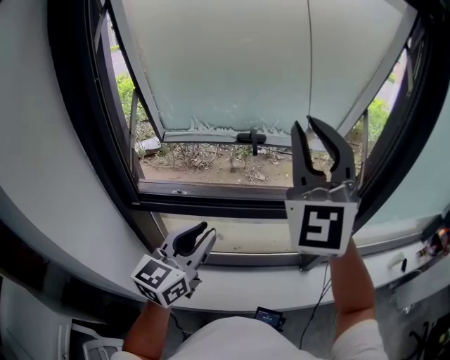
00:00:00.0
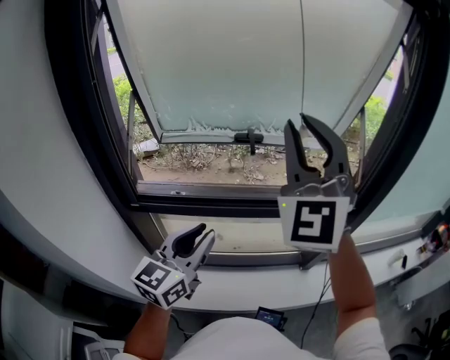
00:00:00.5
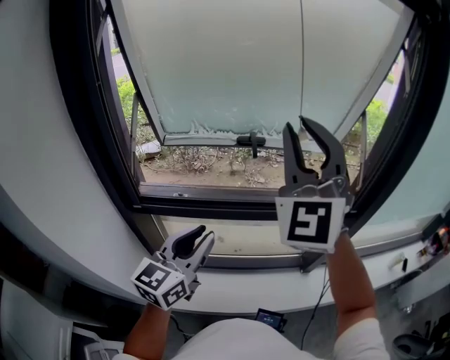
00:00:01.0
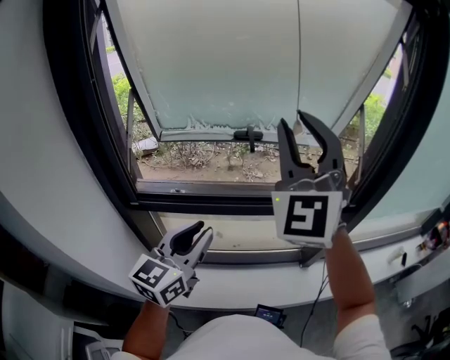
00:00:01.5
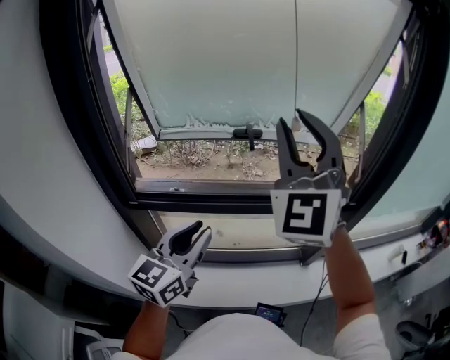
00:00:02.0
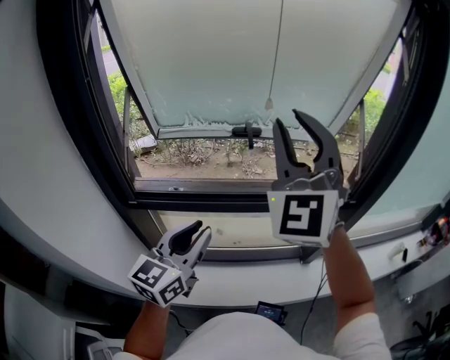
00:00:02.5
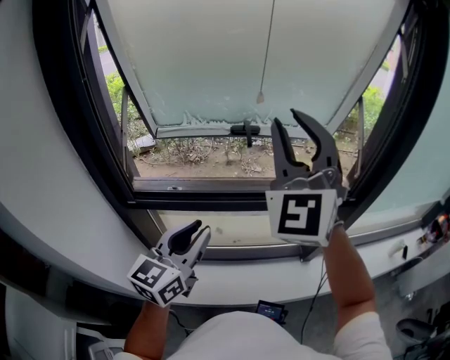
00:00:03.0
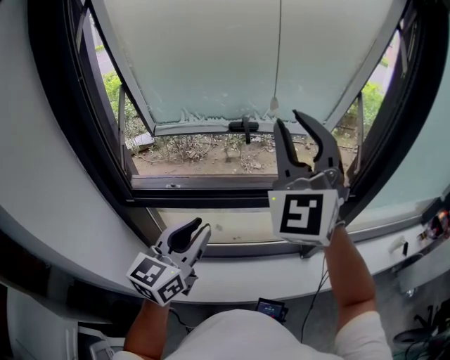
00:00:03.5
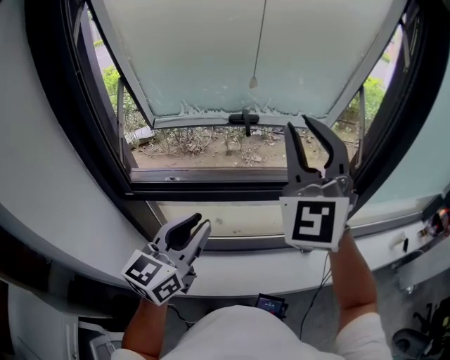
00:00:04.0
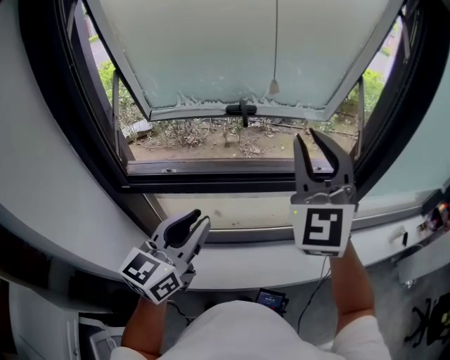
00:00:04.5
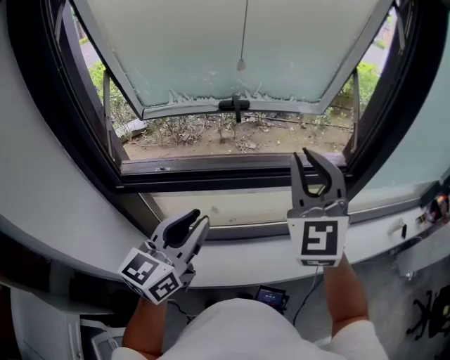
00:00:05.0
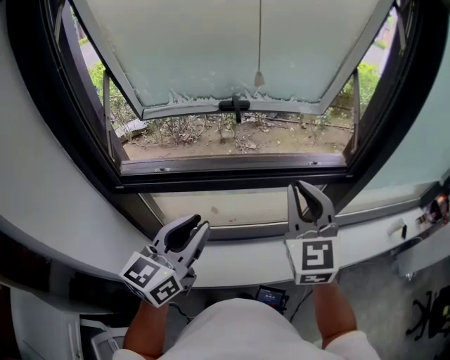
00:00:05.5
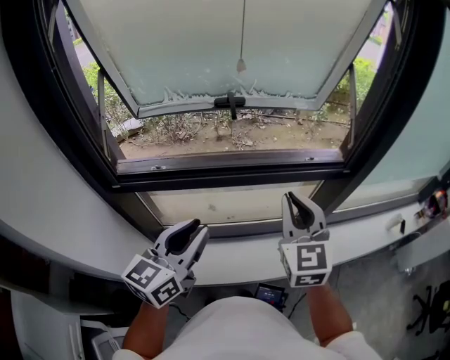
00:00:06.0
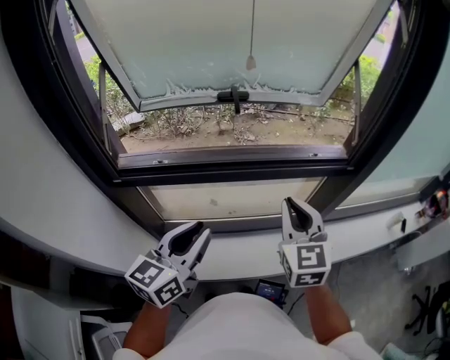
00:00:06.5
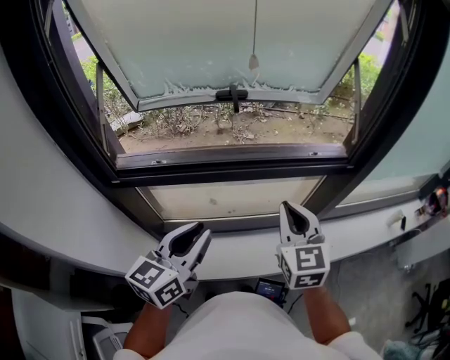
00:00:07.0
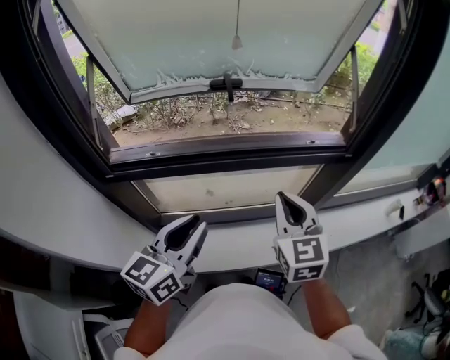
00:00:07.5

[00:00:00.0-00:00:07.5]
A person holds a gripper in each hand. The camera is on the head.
00:00:00.0 to 00:00:04.0: The grippers stay close to where they were, moving slightly.
00:00:04.0 to 00:00:05.5: The right gripper moves downward, some 15 cm, and changes its angle by roughly 30 degrees.
00:00:05.5 to 00:00:07.5: The right gripper shifts approximately 10 cm downward.

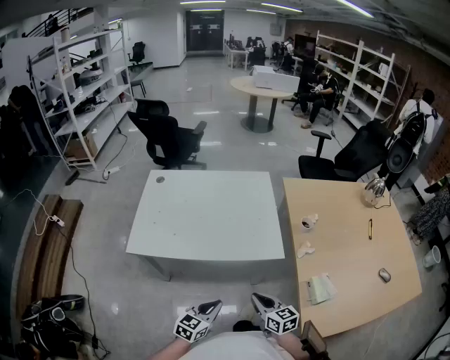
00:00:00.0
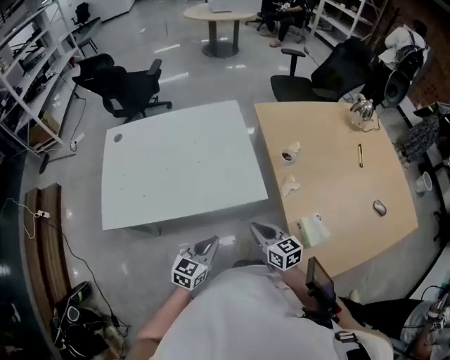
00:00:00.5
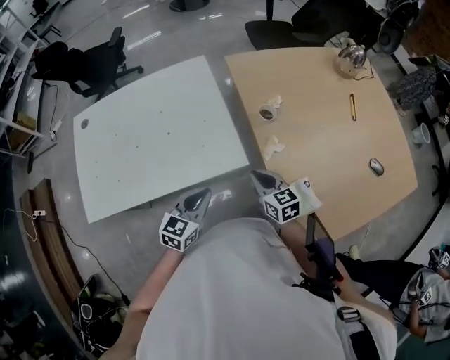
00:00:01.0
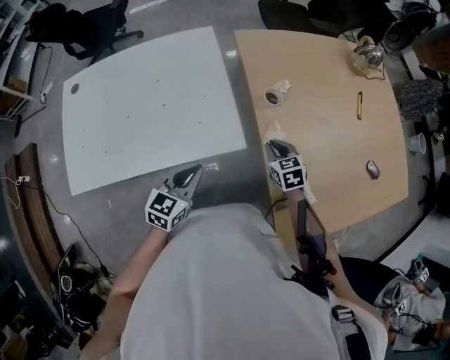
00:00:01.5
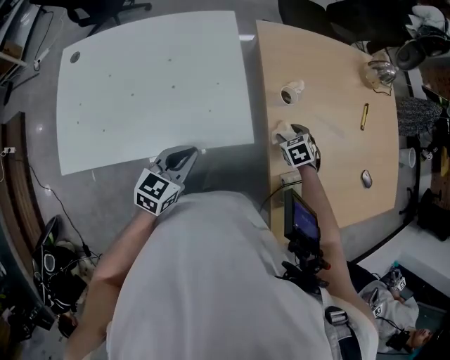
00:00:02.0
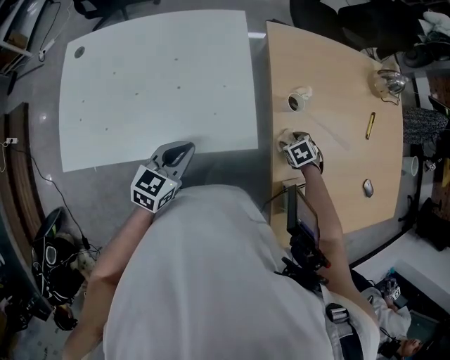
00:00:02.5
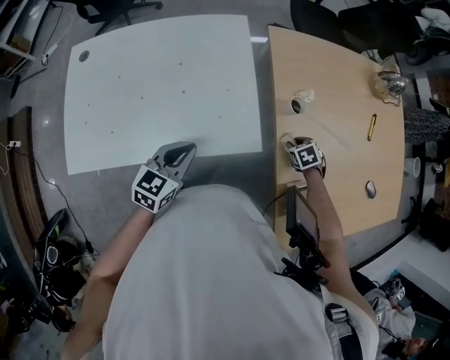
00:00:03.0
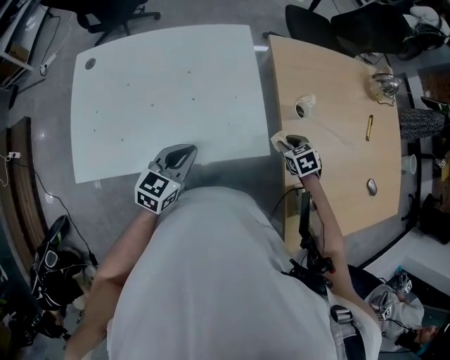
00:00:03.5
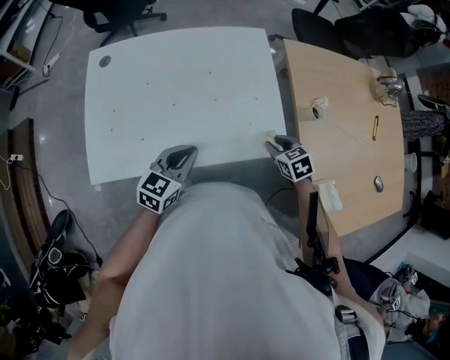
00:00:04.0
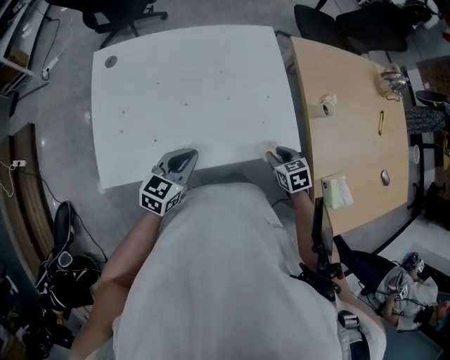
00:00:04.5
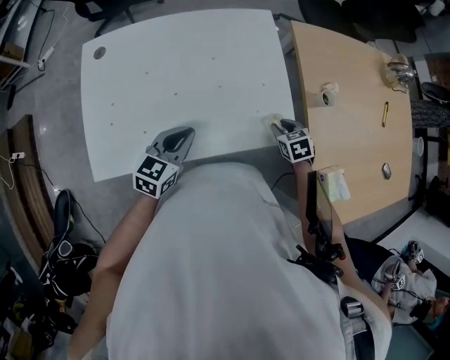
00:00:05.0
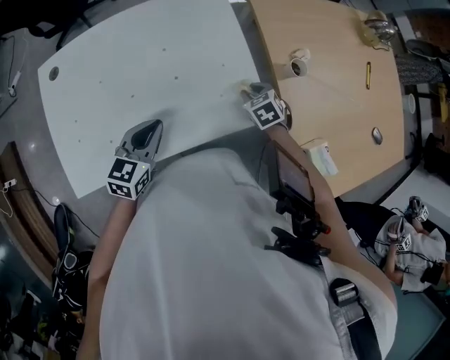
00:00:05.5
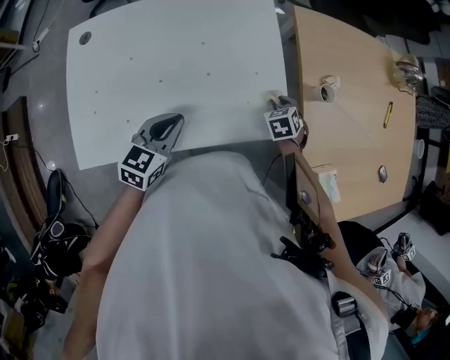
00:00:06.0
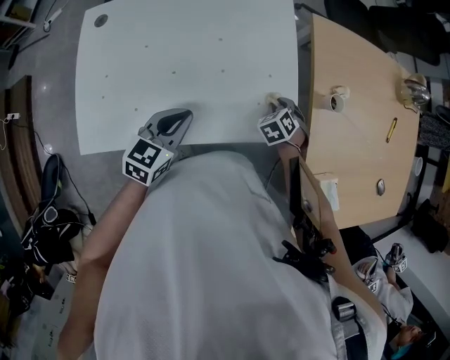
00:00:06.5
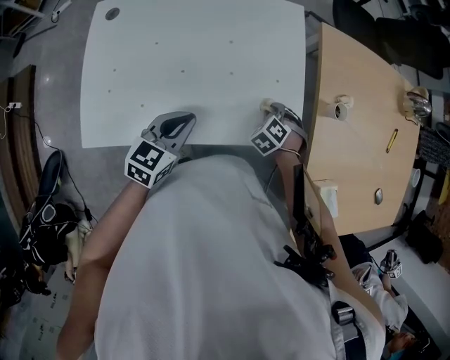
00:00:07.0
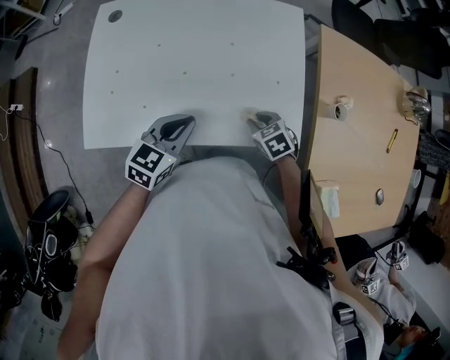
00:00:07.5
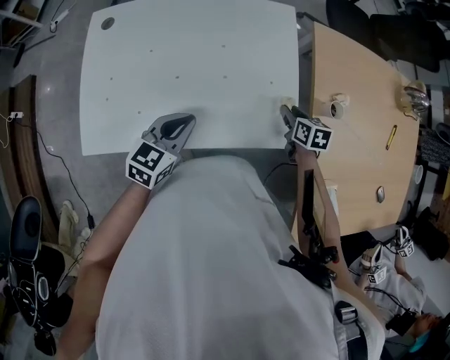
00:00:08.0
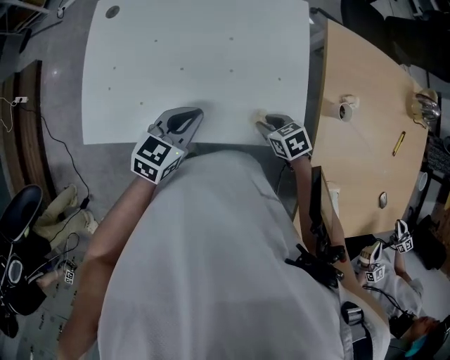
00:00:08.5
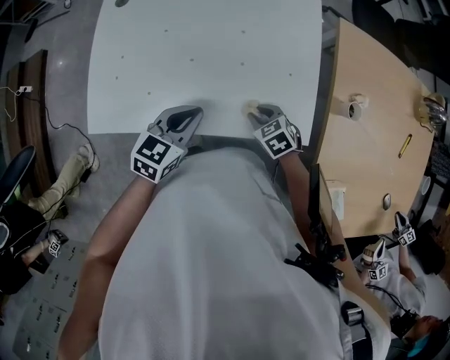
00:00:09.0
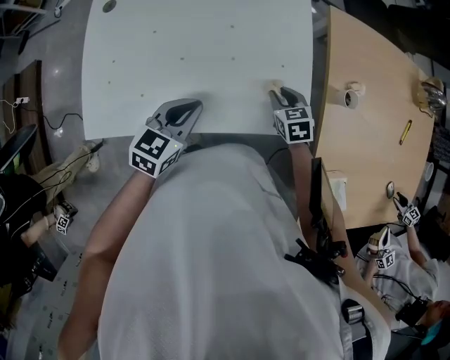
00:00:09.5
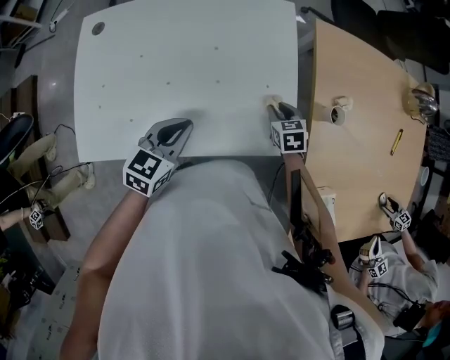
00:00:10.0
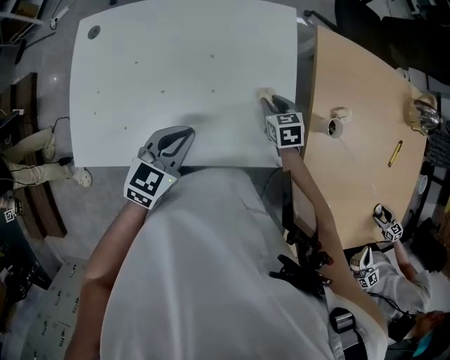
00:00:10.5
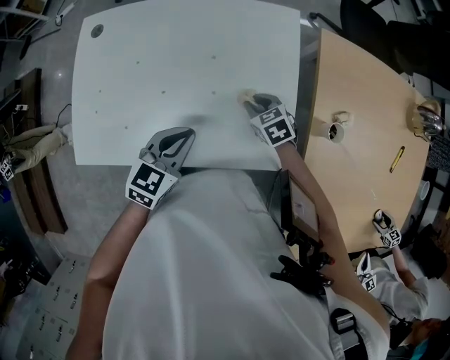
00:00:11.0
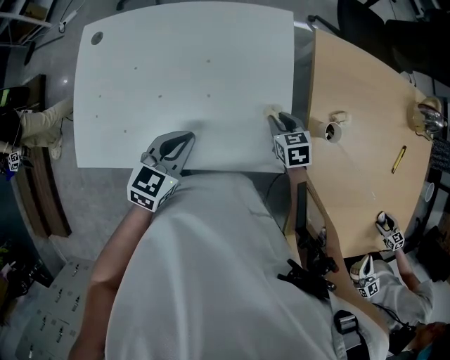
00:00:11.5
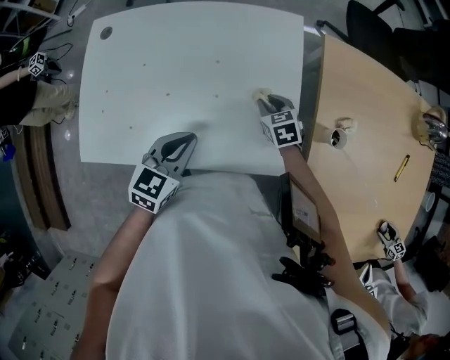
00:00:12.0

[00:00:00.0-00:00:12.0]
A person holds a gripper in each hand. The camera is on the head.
00:00:00.0 to 00:00:02.0: The left gripper is displaced forward by approximately 25 cm; the right gripper goes about 40 cm forward and to the right, tips its fingers downward by about 40 degrees, and opens its fingers.
00:00:02.0 to 00:00:04.0: The left gripper moves some 15 cm; the right gripper changes place by approximately 20 cm, and closes up.
00:00:04.0 to 00:00:06.0: The left gripper ends up roughly 5 cm from where it was. Meanwhile the right gripper moves forward and downward, approximately 10 cm, and turns by about 20 degrees.
00:00:06.0 to 00:00:08.0: The right gripper changes its angle by approximately 40 degrees.
00:00:08.0 to 00:00:10.0: The right gripper moves about 15 cm to the left and comes back, and swivels approximately 20 degrees.
00:00:10.0 to 00:00:12.0: The right gripper swings left and right, about 10 cm each way, with 2 reversals.

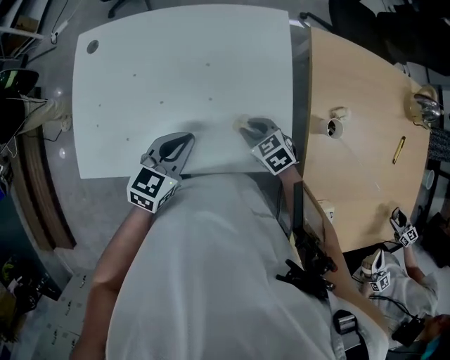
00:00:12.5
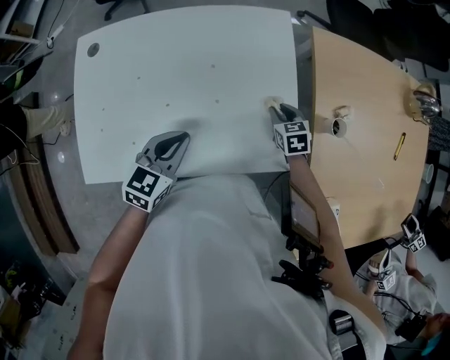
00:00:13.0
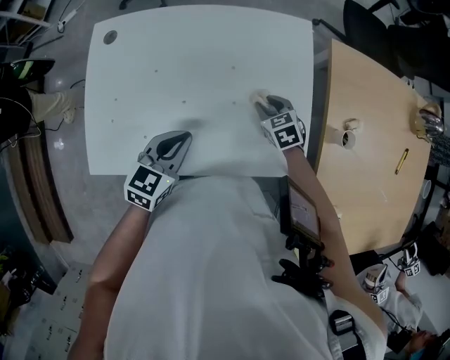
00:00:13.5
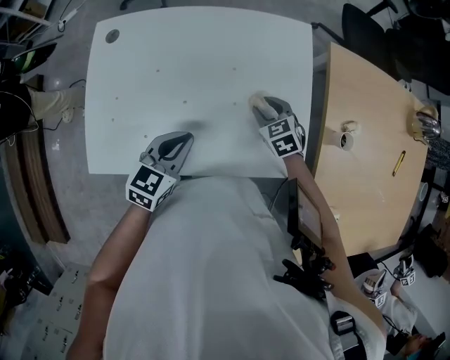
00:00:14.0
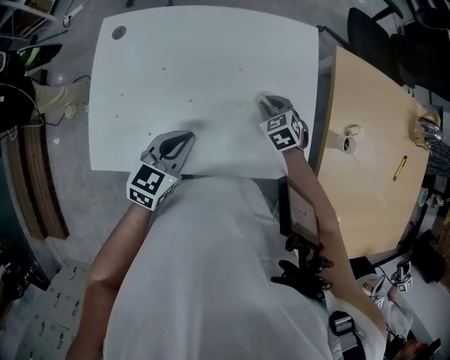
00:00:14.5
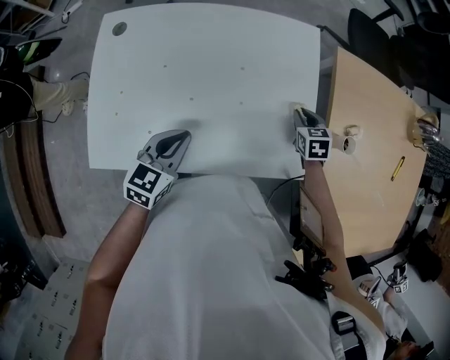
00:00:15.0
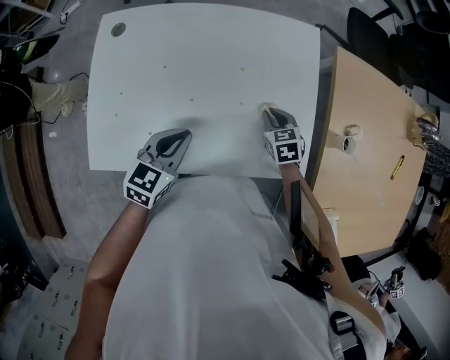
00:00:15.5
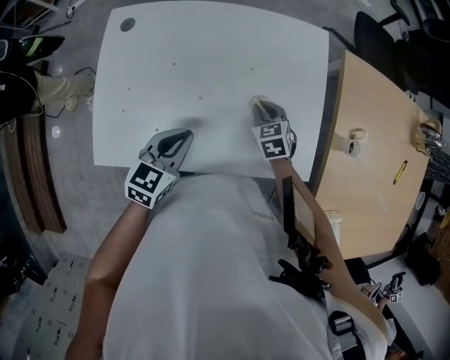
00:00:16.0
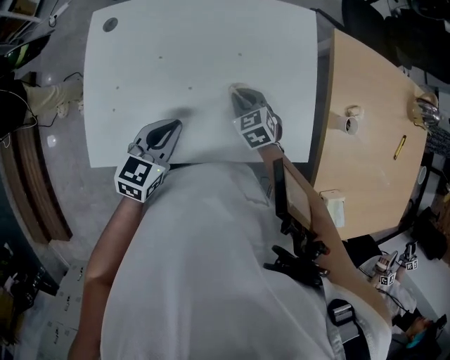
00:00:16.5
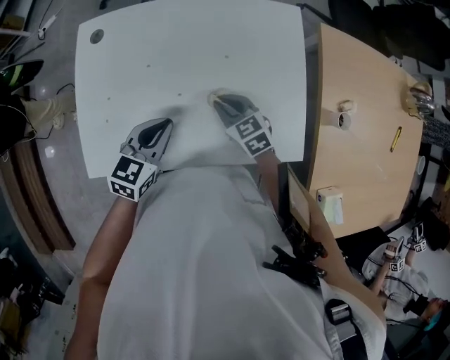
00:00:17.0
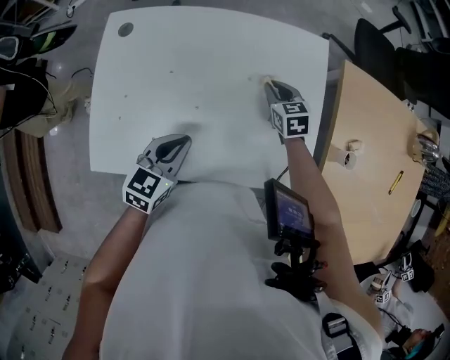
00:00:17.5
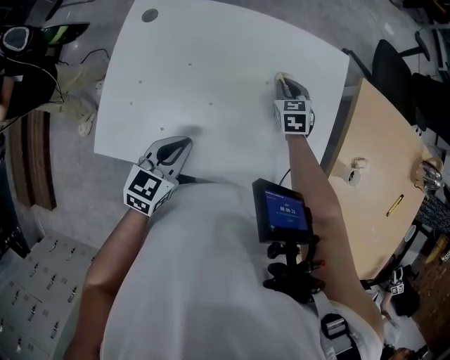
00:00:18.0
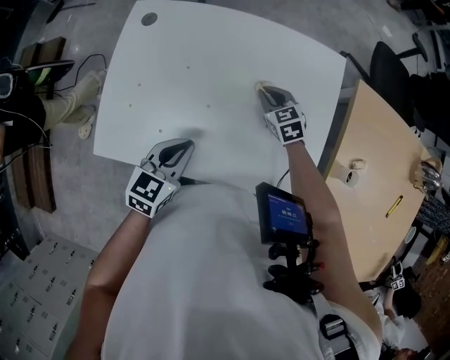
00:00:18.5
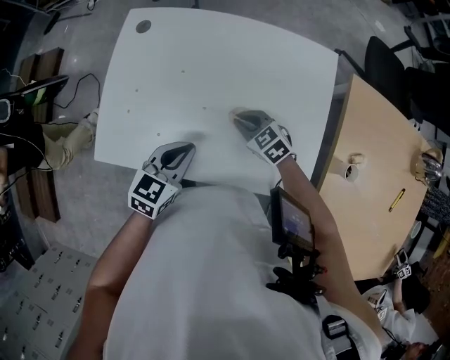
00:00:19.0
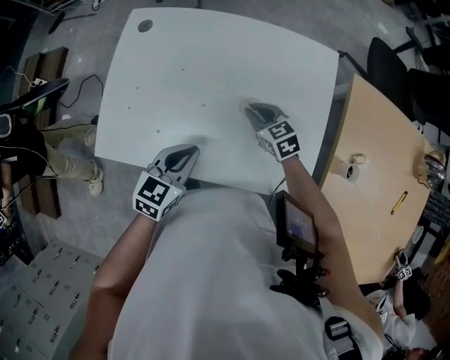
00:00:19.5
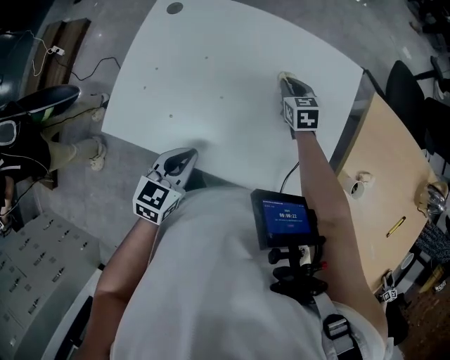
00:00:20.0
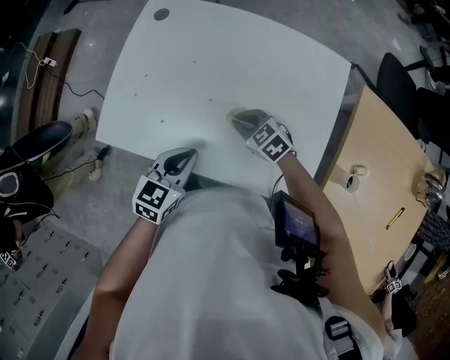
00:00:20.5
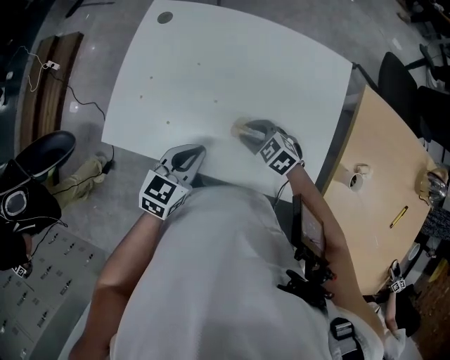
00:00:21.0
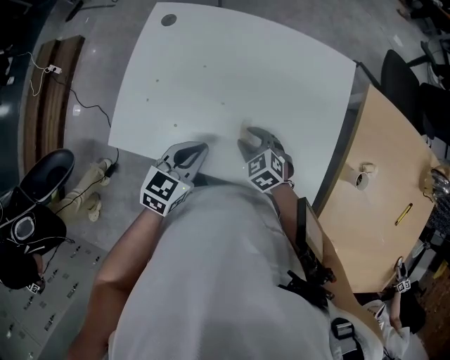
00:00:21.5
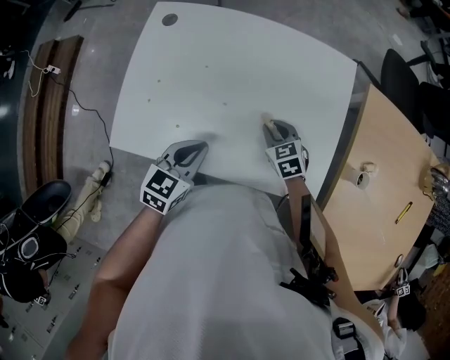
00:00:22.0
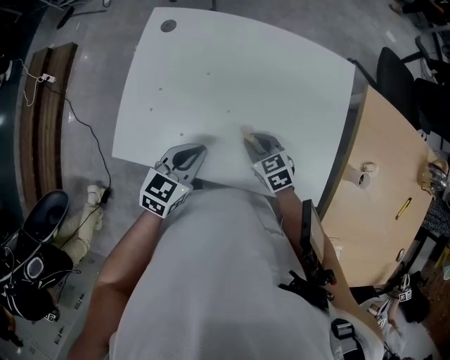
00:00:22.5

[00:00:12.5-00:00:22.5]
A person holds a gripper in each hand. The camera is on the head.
00:00:12.5 to 00:00:14.5: The right gripper is displaced forward by some 10 cm, and travels to the right and back again, approximately 10 cm each way. Meanwhile the left gripper is displaced to the left by roughly 10 cm.
00:00:14.5 to 00:00:16.5: The right gripper is displaced to the left by roughly 10 cm.
00:00:16.5 to 00:00:18.5: The right gripper moves forward, roughly 10 cm.
00:00:18.5 to 00:00:20.5: The right gripper goes forward and backward, roughly 15 cm each way, reversing 2 times, and turns by approximately 30 degrees.
00:00:20.5 to 00:00:22.5: The left gripper moves some 5 cm; the right gripper swivels approximately 20 degrees.
